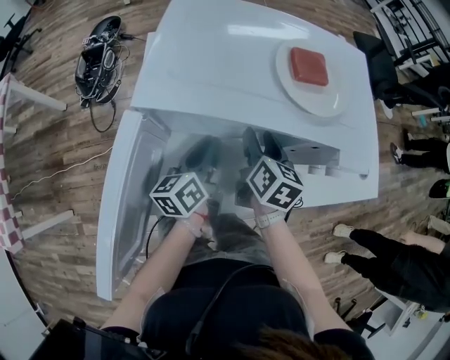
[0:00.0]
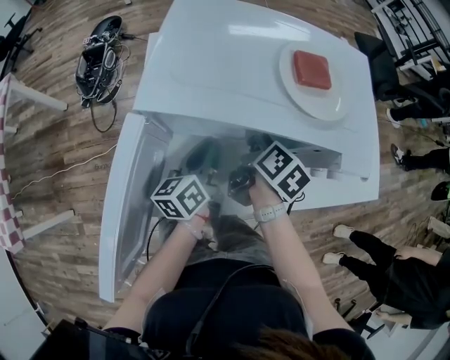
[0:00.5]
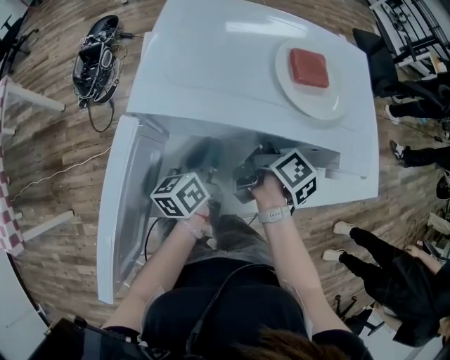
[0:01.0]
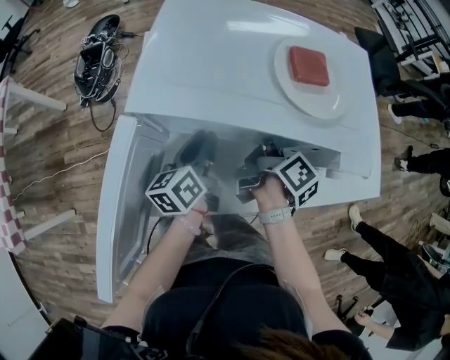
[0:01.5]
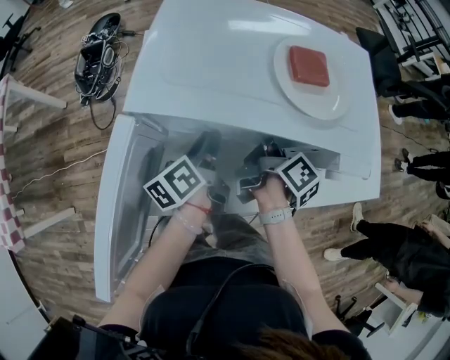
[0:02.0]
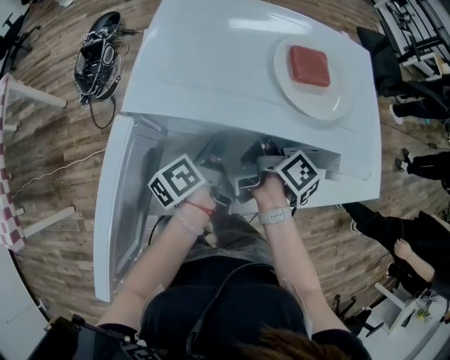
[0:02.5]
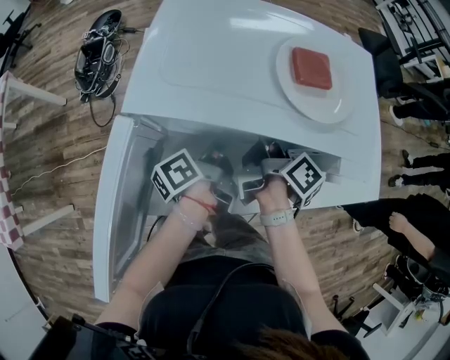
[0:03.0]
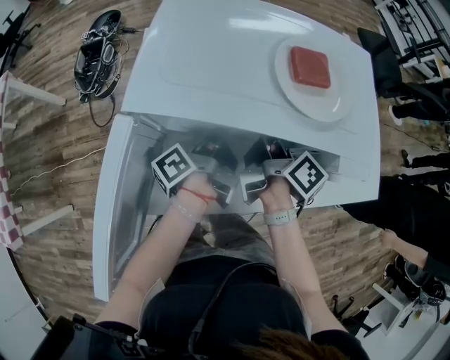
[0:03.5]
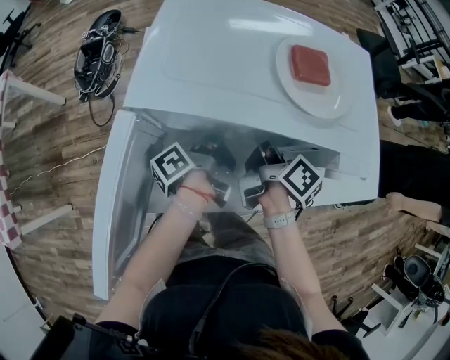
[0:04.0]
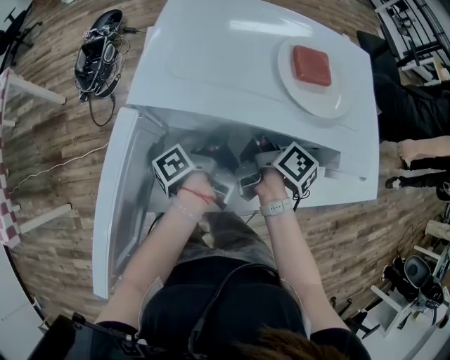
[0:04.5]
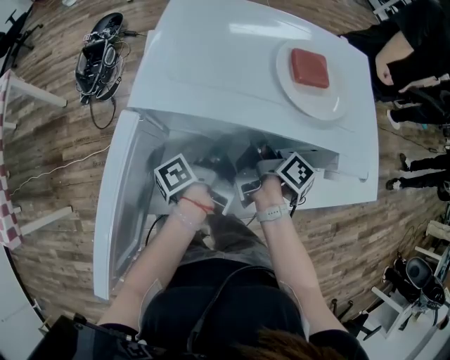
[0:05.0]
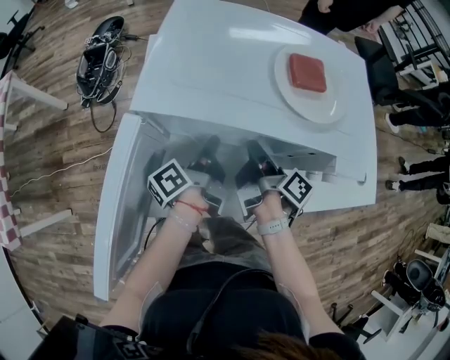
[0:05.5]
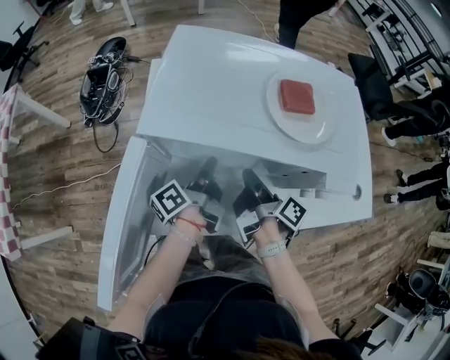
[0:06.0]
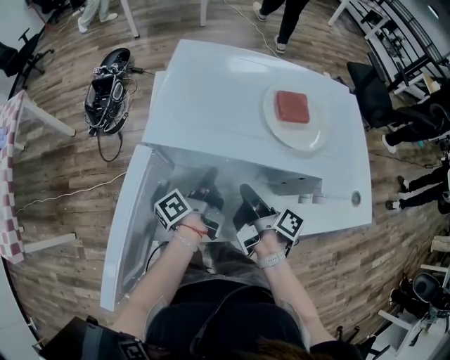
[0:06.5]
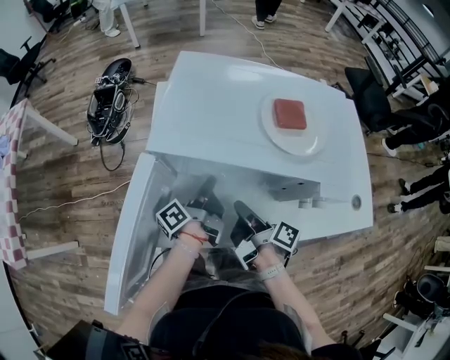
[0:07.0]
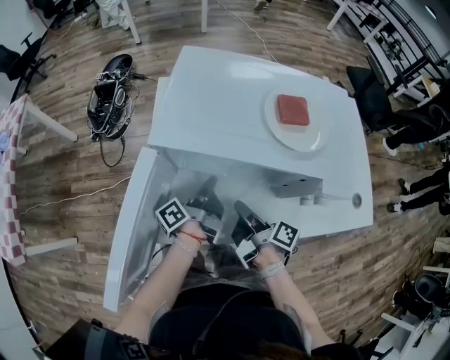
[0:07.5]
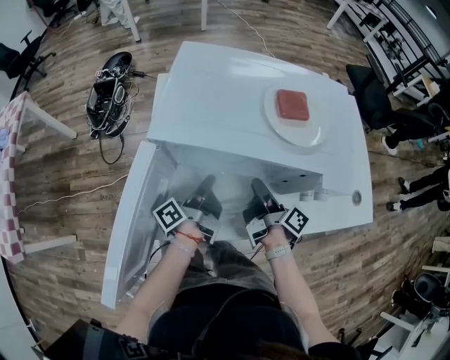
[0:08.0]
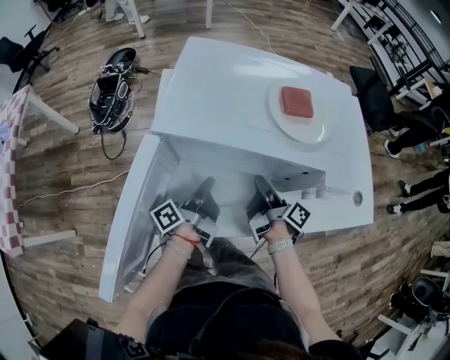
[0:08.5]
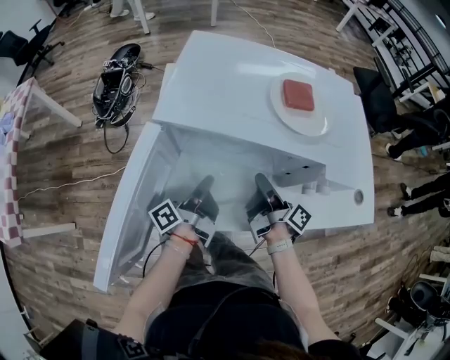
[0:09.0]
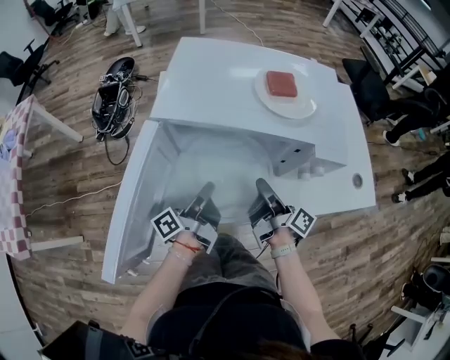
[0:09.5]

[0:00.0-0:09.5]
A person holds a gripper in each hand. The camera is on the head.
0:00.0 to 0:02.0: The right gripper rotates around the line of its fingers by roughly 50 degrees, clockwise from behind.
0:04.0 to 0:05.5: The right gripper closes its fingers.
0:05.5 to 0:07.5: The right gripper changes place by about 10 cm.
0:07.5 to 0:09.5: The right gripper moves approximately 5 cm.

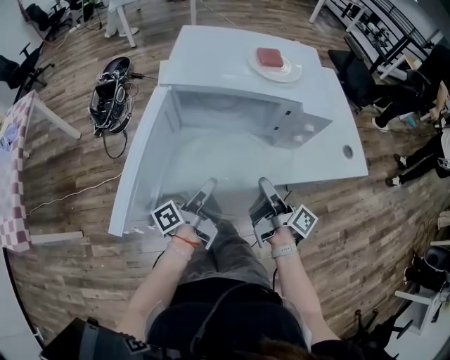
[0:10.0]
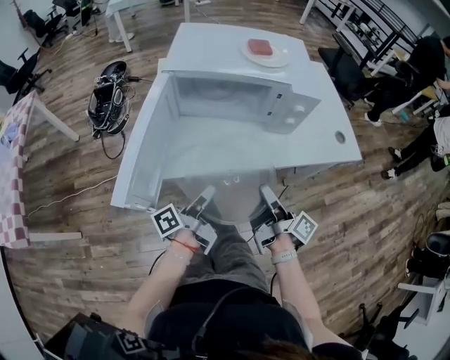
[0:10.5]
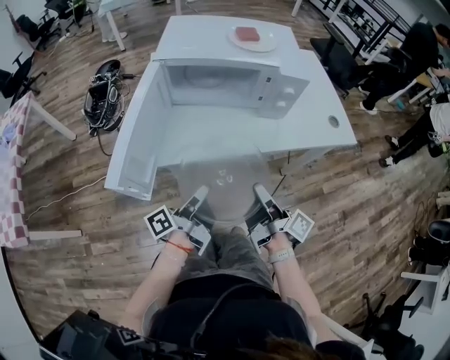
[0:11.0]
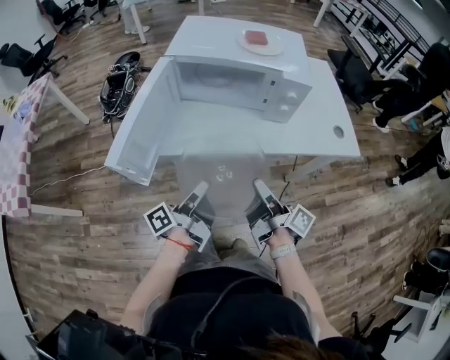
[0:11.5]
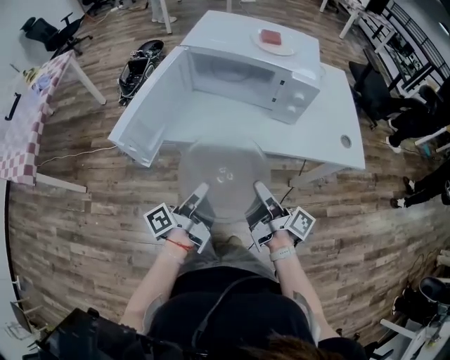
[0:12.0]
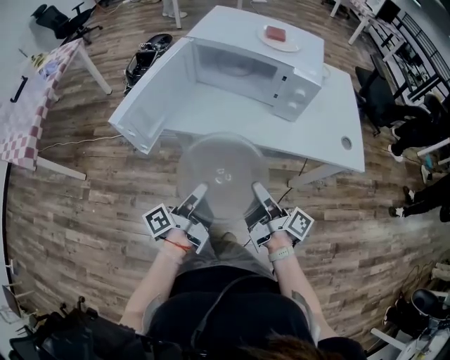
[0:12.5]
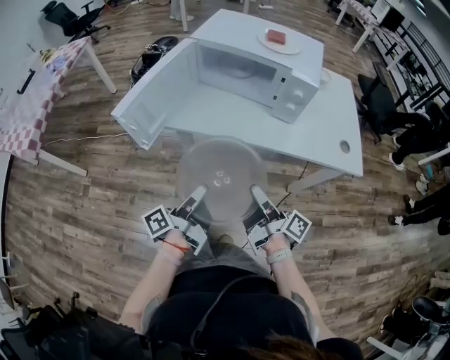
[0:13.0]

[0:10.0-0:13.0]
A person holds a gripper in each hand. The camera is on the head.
0:10.0 to 0:11.5: The right gripper shifts by some 15 cm.
0:11.5 to 0:13.0: The right gripper changes place by some 5 cm.

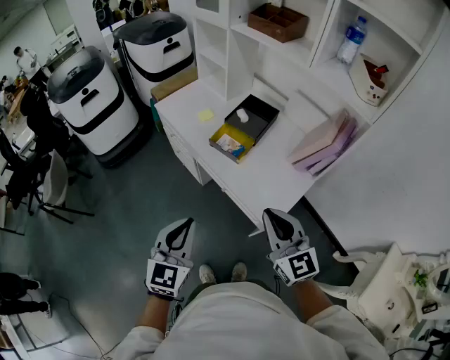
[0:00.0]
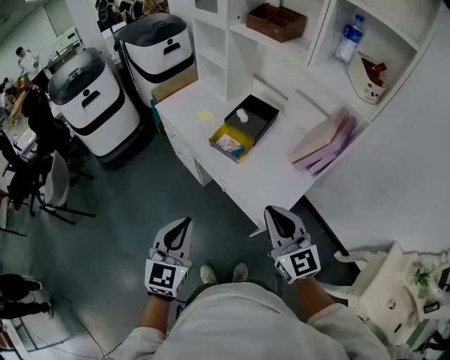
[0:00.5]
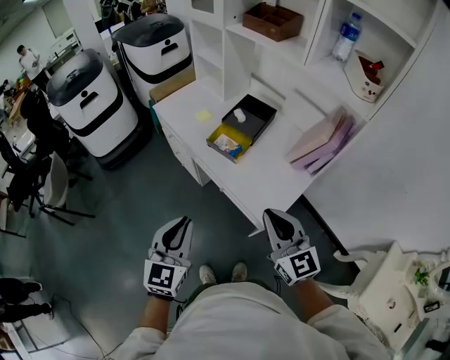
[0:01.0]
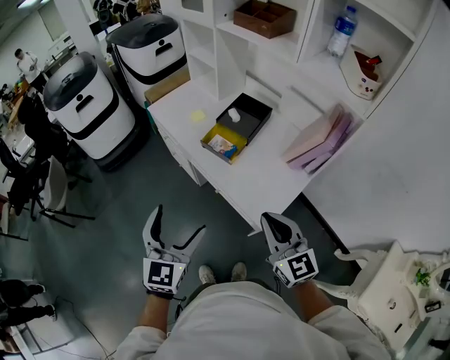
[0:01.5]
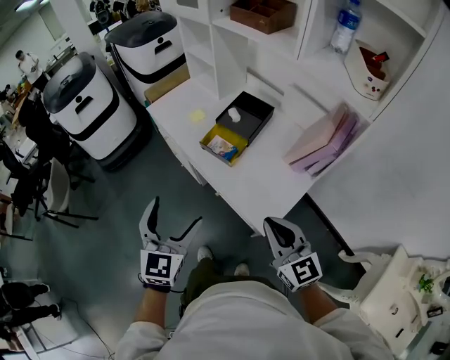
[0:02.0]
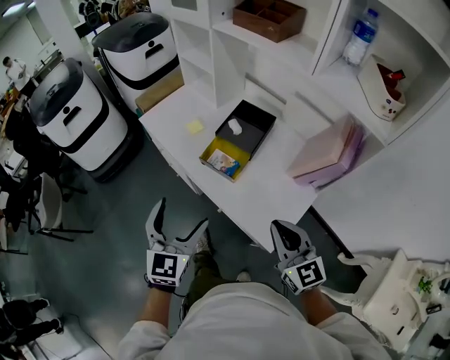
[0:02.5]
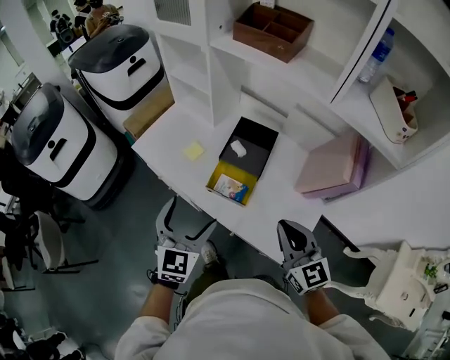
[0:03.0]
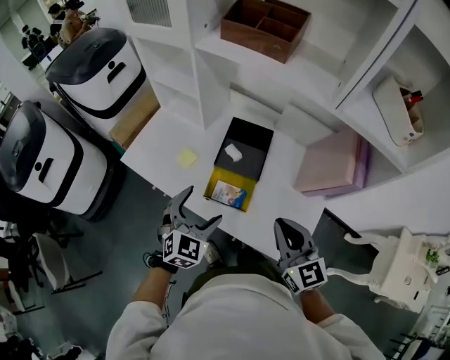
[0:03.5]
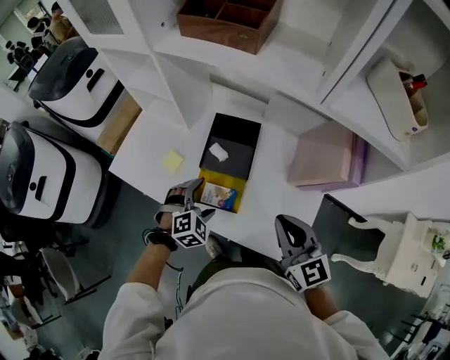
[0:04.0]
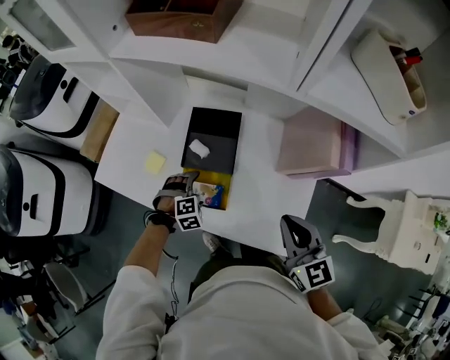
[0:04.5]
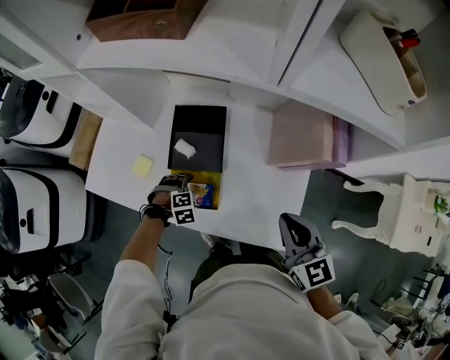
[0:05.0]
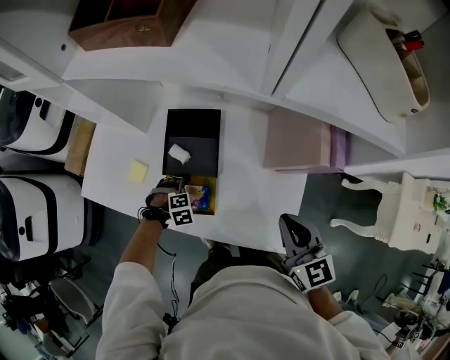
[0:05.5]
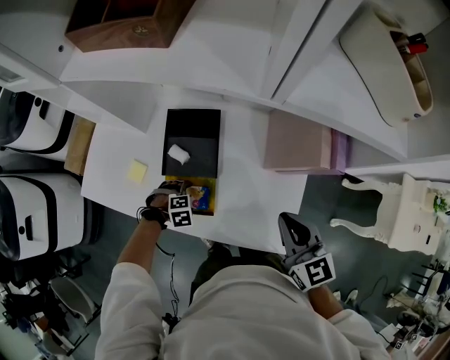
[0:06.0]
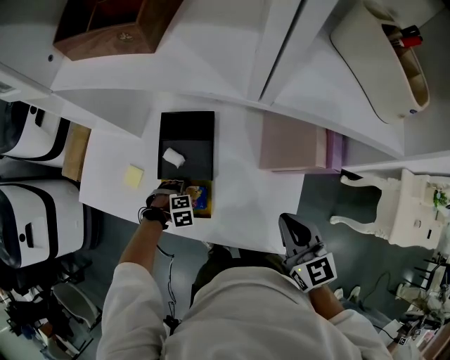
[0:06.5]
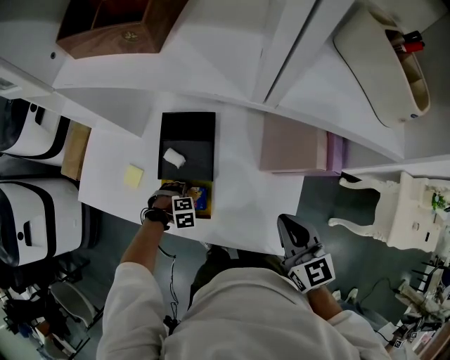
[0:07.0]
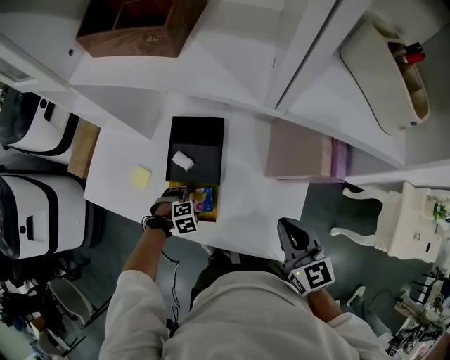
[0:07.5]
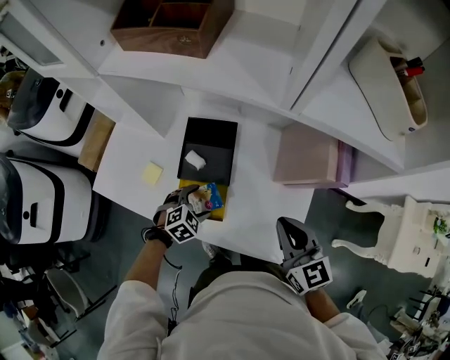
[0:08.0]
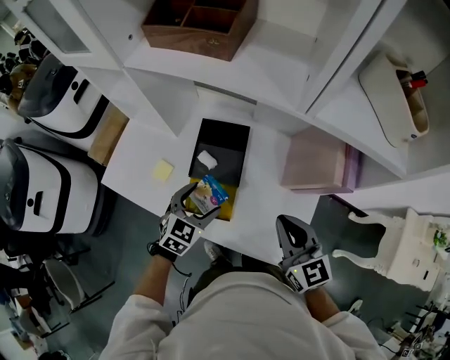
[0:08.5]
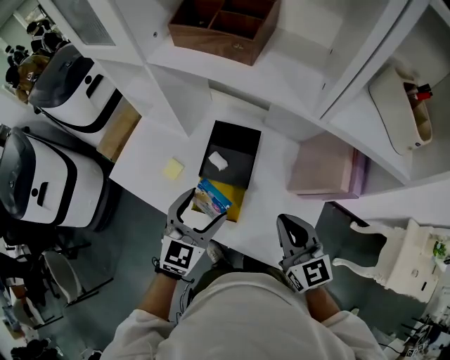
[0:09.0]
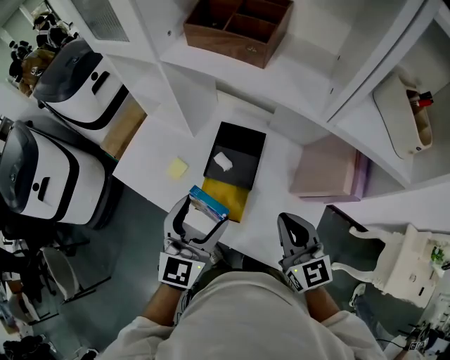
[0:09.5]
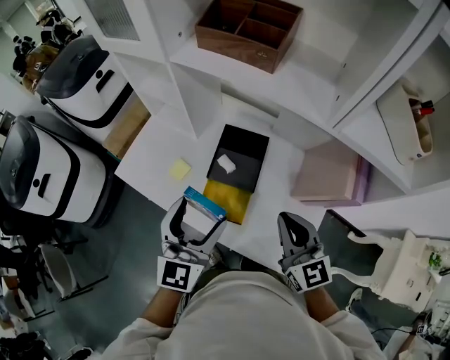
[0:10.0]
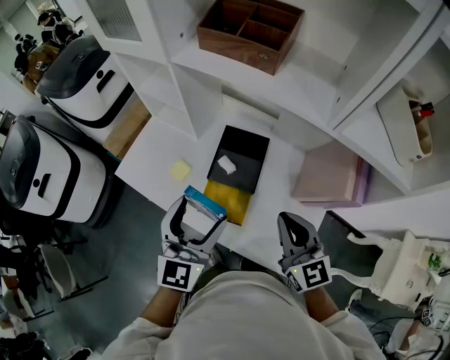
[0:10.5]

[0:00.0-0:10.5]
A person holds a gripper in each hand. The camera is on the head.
0:00.0 to 0:02.0: The left gripper heads forward, covering roughly 10 cm, and opens. The right gripper travels to the right by approximately 5 cm.
0:02.0 to 0:04.0: The right gripper ends up some 25 cm from where it was, and rotates some 30 degrees, while the left gripper moves about 40 cm, and tips its fingers downward by approximately 40 degrees.
0:04.0 to 0:06.5: The right gripper changes place by approximately 15 cm; the left gripper shifts about 20 cm downward, and points its fingers approximately 40 degrees further downward.
0:06.5 to 0:08.5: The left gripper heads upward, covering approximately 25 cm, and angles its fingers upward, by roughly 50 degrees; the right gripper ends up some 10 cm from where it was.
0:08.5 to 0:10.5: The right gripper heads to the left, covering approximately 5 cm, while the left gripper travels upward by roughly 15 cm, and turns by approximately 30 degrees.

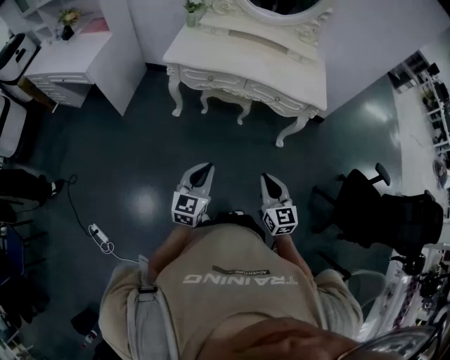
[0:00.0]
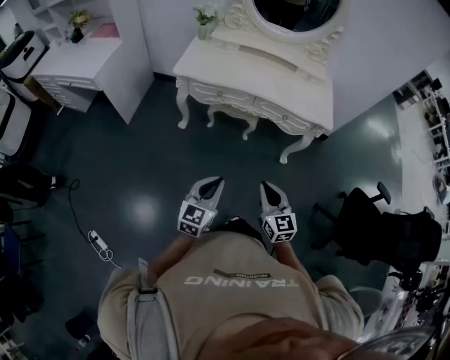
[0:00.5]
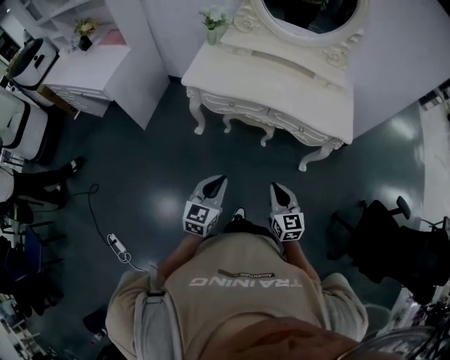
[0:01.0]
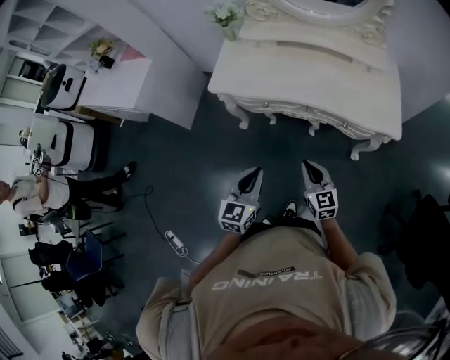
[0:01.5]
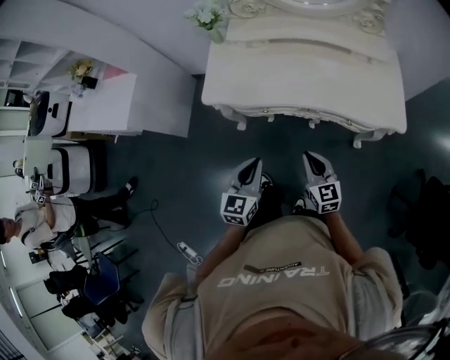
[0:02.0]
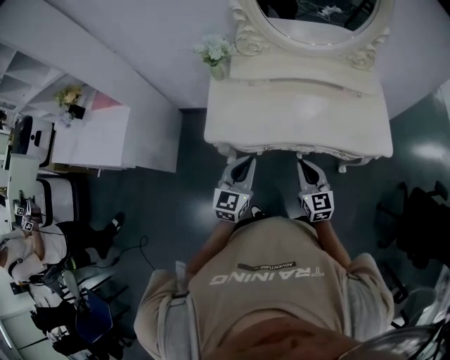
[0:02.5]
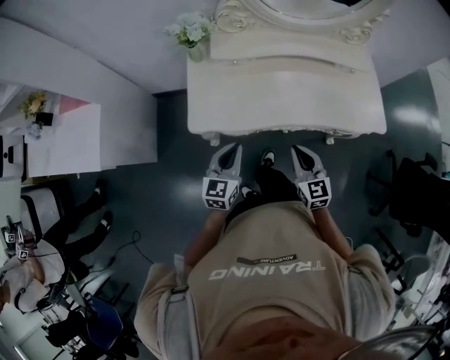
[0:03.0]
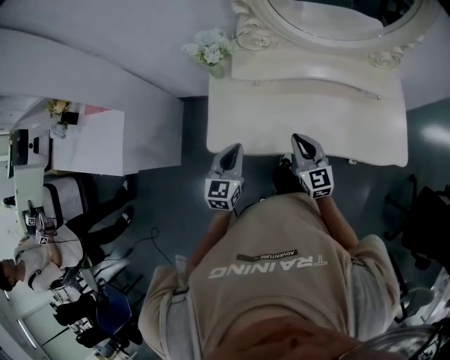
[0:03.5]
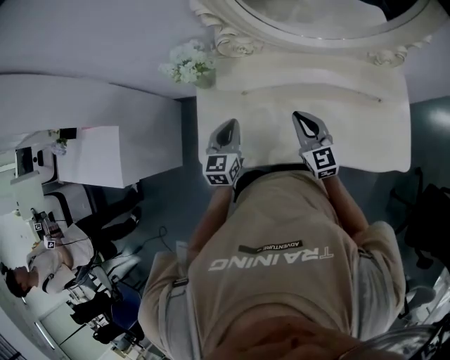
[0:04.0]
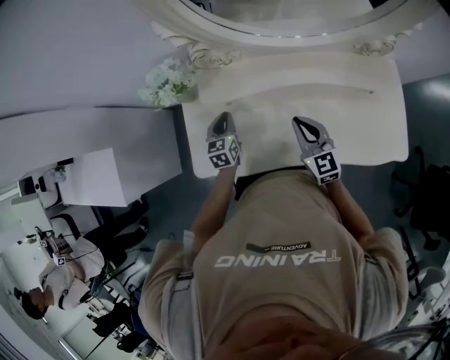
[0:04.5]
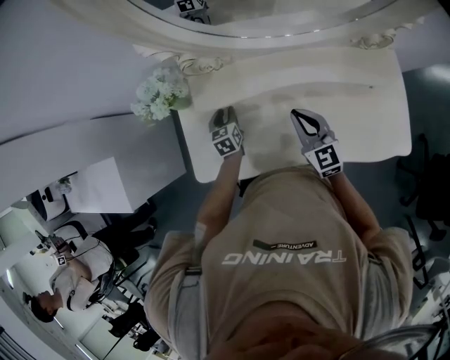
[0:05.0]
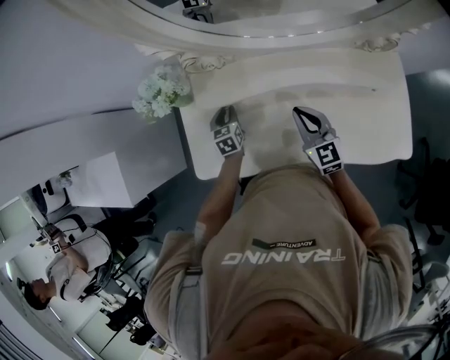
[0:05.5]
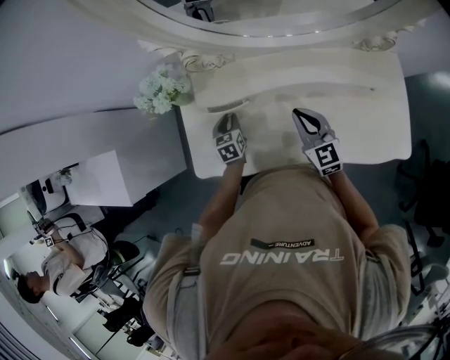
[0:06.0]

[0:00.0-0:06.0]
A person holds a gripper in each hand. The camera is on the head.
0:00.0 to 0:02.0: Both grippers travel together forward, some 40 cm.
0:02.0 to 0:04.0: The two grippers travel together, forward, roughly 40 cm.
0:04.0 to 0:06.0: The right gripper travels to the right by about 5 cm. Meanwhile the left gripper shifts about 15 cm downward and forward, turns by roughly 20 degrees, and opens its fingers.
